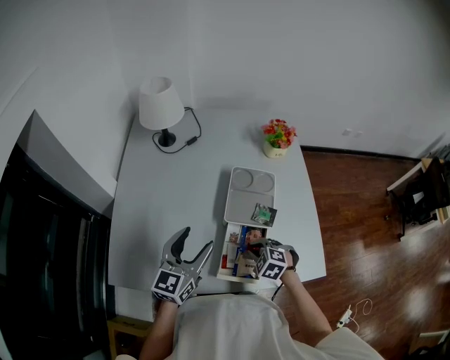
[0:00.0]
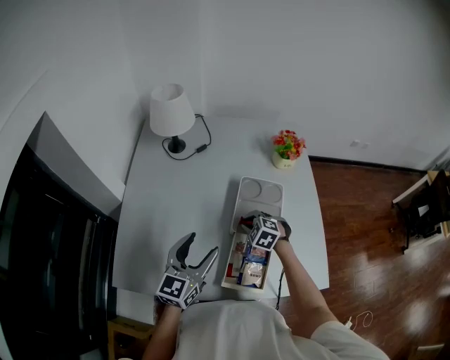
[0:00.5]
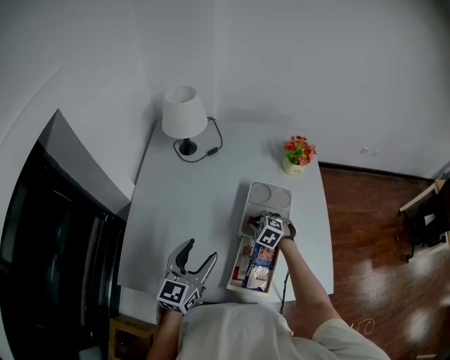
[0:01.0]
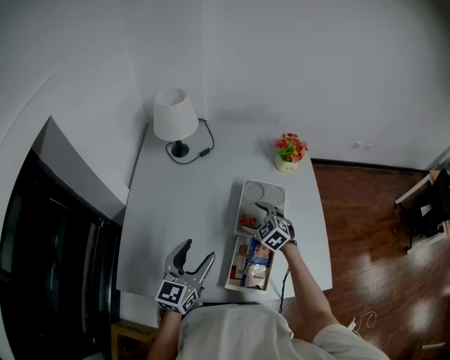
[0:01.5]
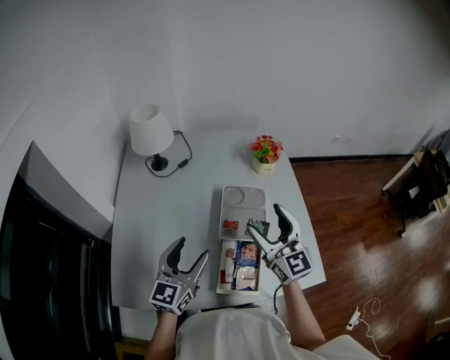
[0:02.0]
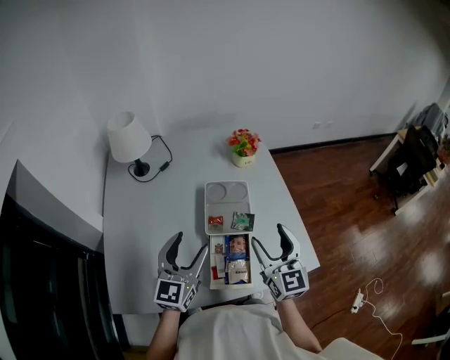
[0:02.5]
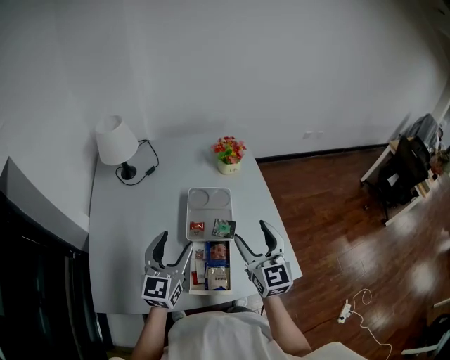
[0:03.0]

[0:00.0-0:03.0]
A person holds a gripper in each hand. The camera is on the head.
0:00.0 to 0:01.5: The right gripper goes approximately 15 cm forward, swivels approximately 20 degrees, and opens its fingers.
0:01.5 to 0:03.0: The right gripper moves upward, to the right and backward, approximately 30 cm, and tilts its fingers some 40 degrees upward. The left gripper goes about 10 cm to the right and upward.

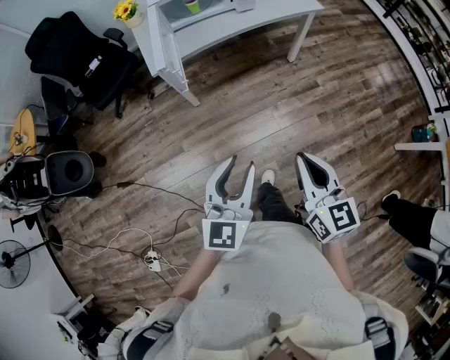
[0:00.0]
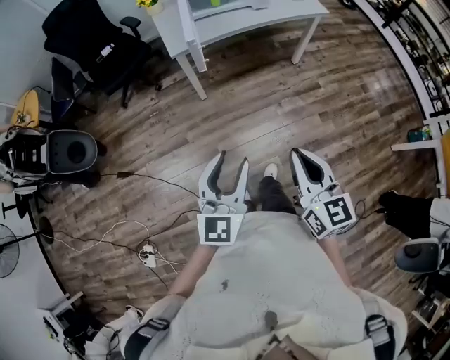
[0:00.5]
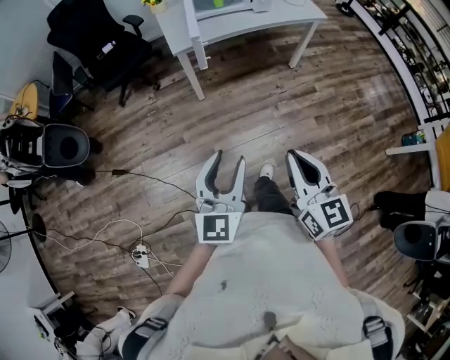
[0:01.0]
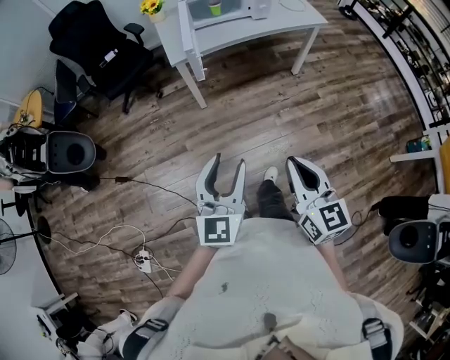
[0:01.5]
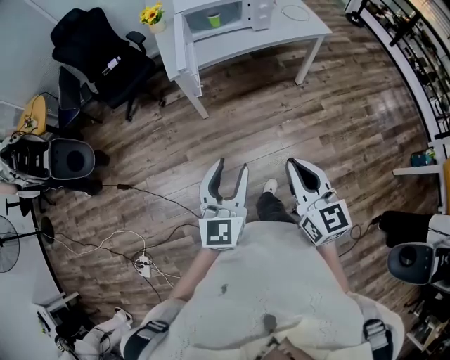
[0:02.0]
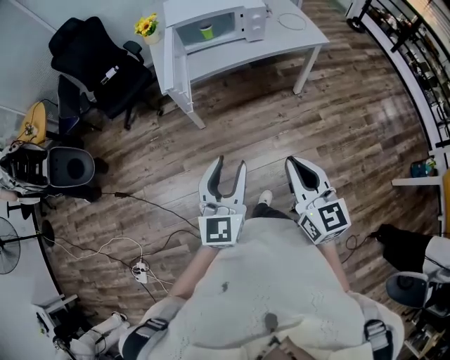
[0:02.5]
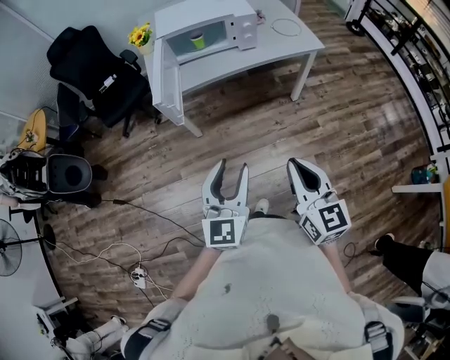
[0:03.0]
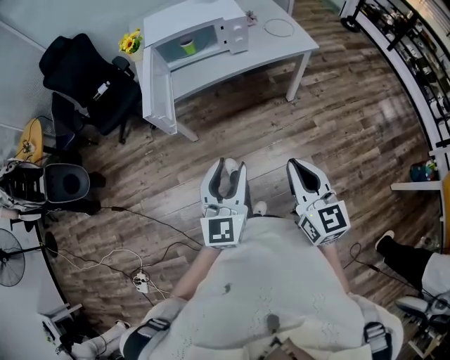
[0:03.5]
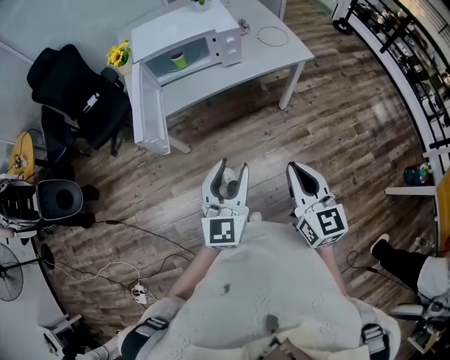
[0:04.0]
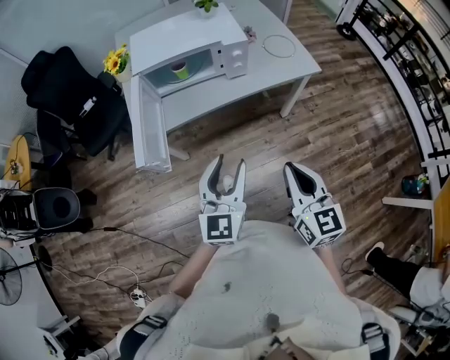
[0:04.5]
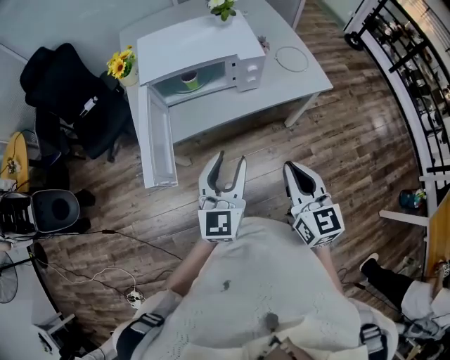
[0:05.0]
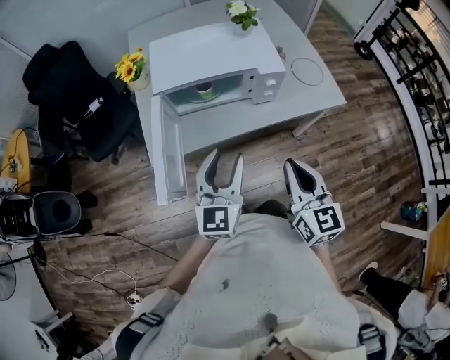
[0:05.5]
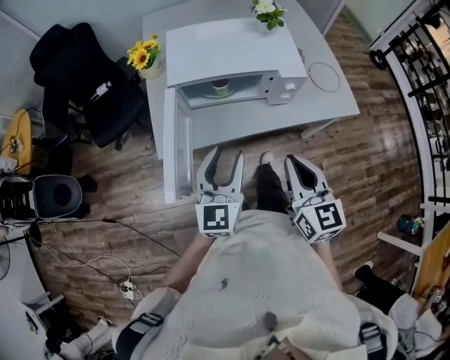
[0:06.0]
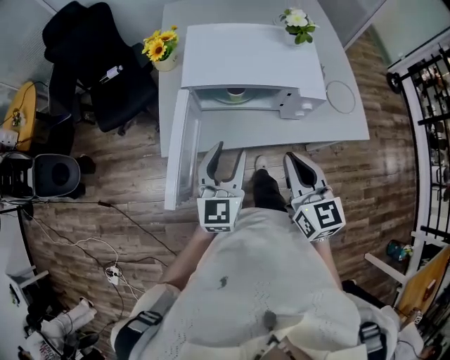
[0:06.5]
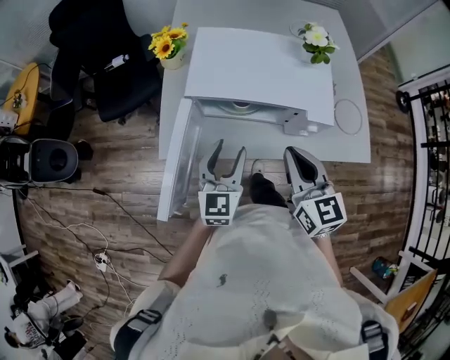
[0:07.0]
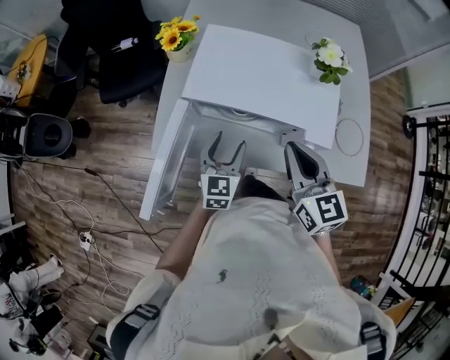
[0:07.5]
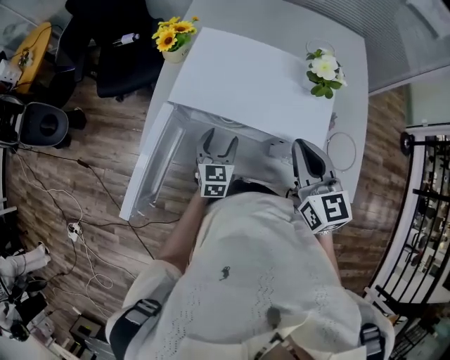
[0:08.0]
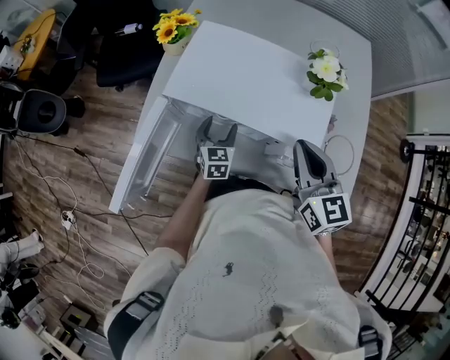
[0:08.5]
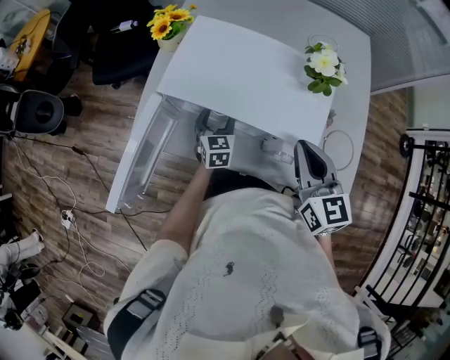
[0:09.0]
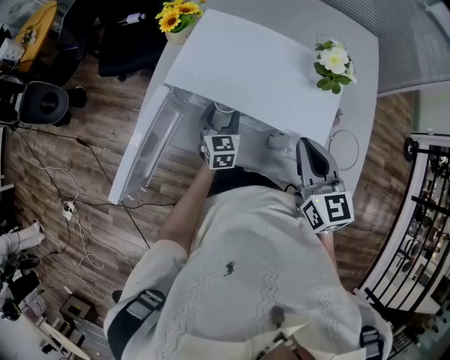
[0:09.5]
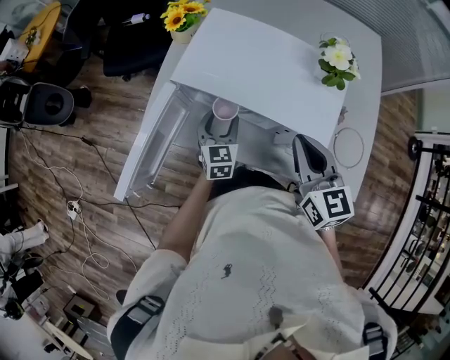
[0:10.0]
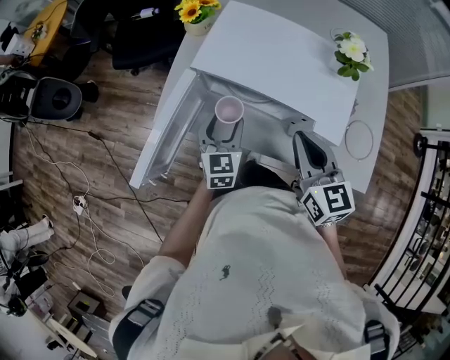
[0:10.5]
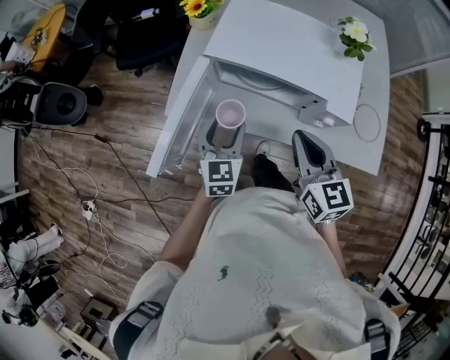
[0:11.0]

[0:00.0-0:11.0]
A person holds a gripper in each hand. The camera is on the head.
0:00.0 to 0:02.0: The right gripper travels backward and back again, roughly 15 cm each way. The left gripper reaches some 15 cm to the left, then returns.
0:02.0 to 0:03.5: Both grippers move to the right and forward, about 25 cm.
0:03.5 to 0:05.5: The pair of grippers is taken forward, roughly 40 cm.
0:05.5 to 0:07.5: The right gripper goes approximately 30 cm forward, and changes its angle by some 30 degrees. The left gripper moves forward and downward, about 30 cm, and turns by roughly 30 degrees.
0:07.5 to 0:09.0: The right gripper heads to the right, covering some 10 cm. The left gripper is displaced downward, forward and to the right by roughly 15 cm.
0:09.0 to 0:11.0: The left gripper goes some 25 cm backward, to the left and upward, while the right gripper heads to the left and backward, covering approximately 20 cm.

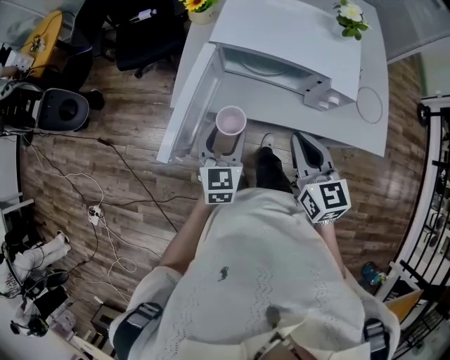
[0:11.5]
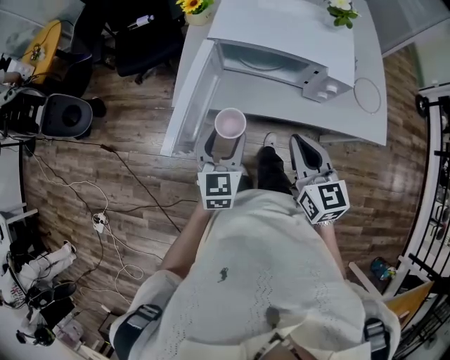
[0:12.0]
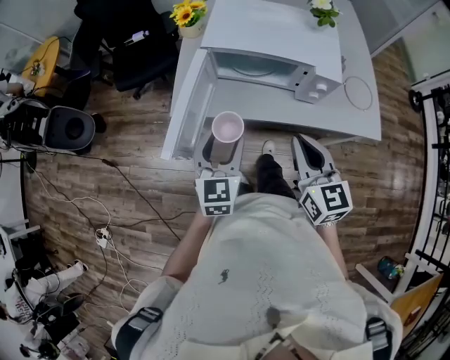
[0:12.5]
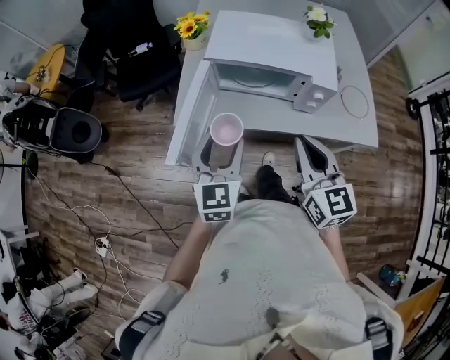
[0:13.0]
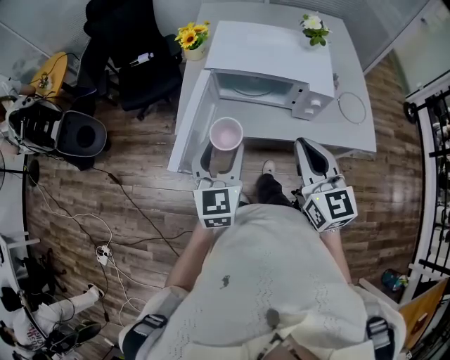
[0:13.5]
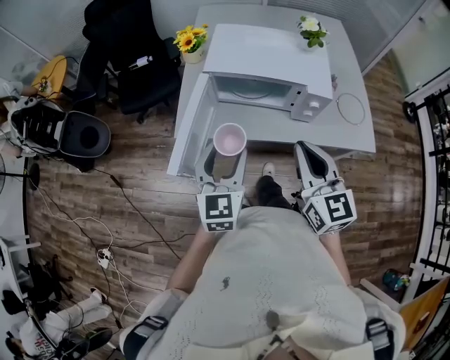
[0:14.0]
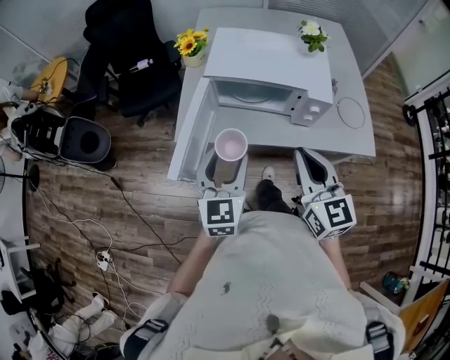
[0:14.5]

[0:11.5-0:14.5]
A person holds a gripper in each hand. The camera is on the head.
0:11.5 to 0:13.0: Both grippers move upward and backward, approximately 10 cm.
0:13.0 to 0:14.5: The grippers make only small movements.

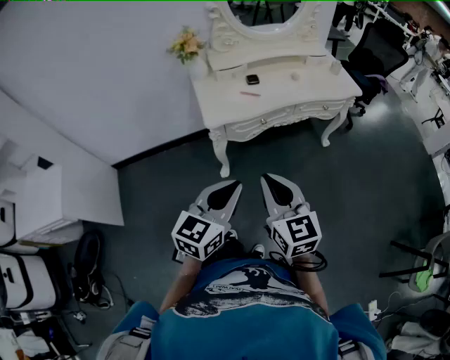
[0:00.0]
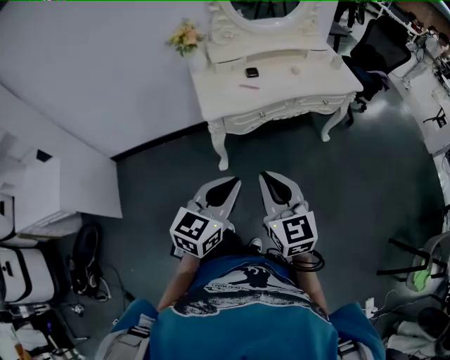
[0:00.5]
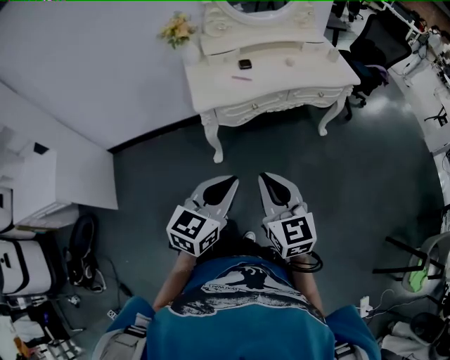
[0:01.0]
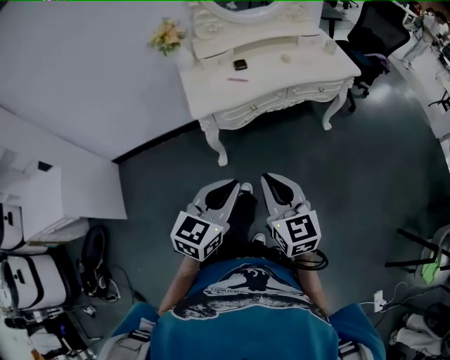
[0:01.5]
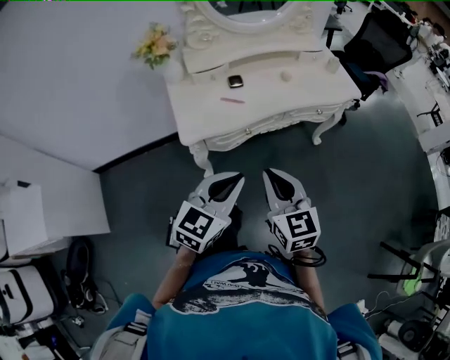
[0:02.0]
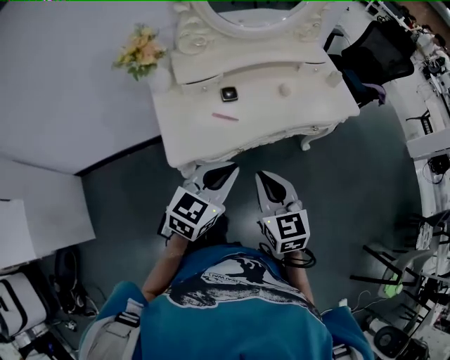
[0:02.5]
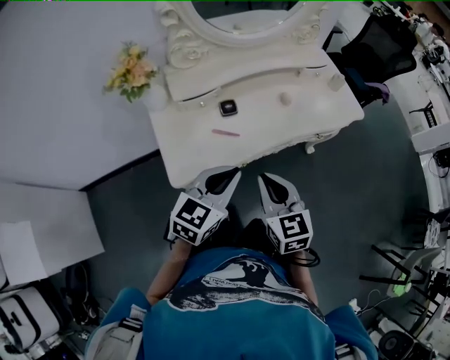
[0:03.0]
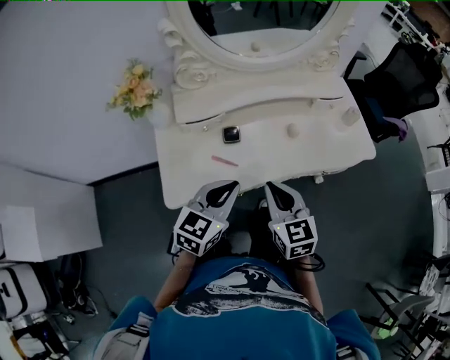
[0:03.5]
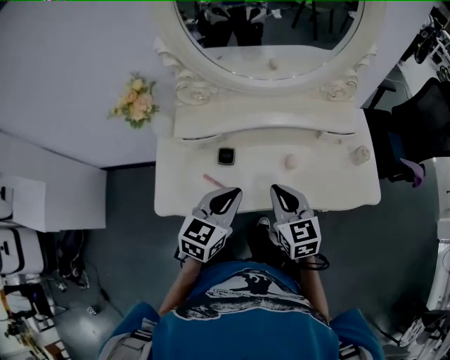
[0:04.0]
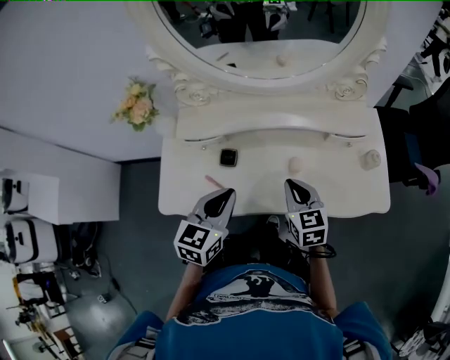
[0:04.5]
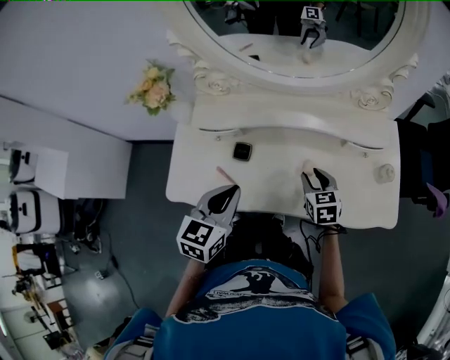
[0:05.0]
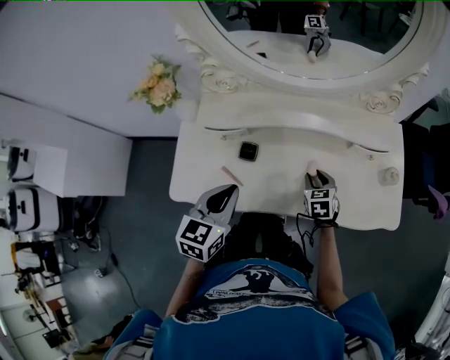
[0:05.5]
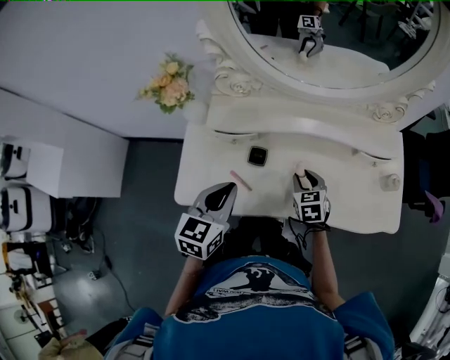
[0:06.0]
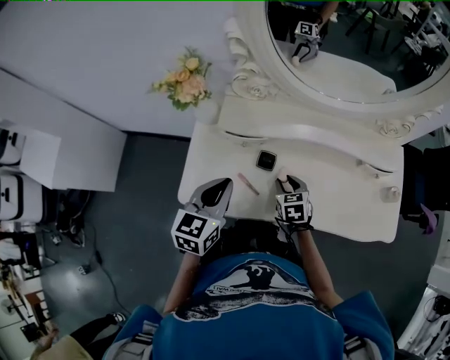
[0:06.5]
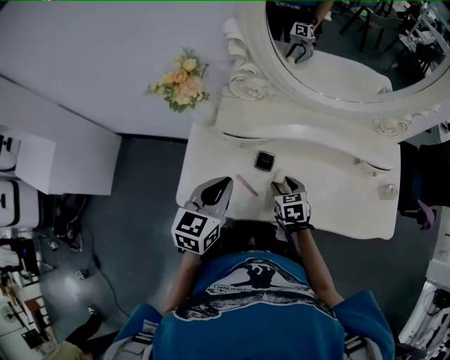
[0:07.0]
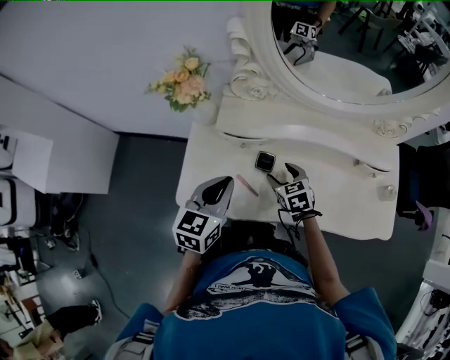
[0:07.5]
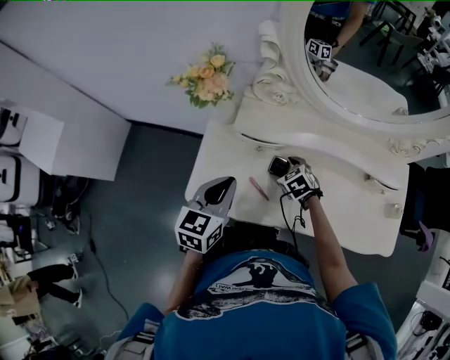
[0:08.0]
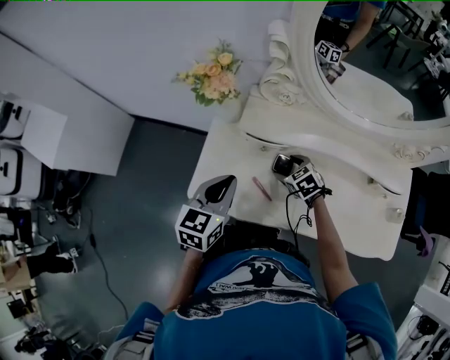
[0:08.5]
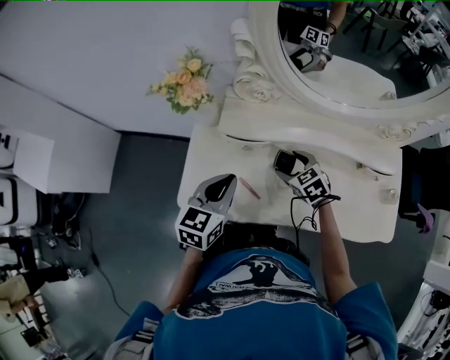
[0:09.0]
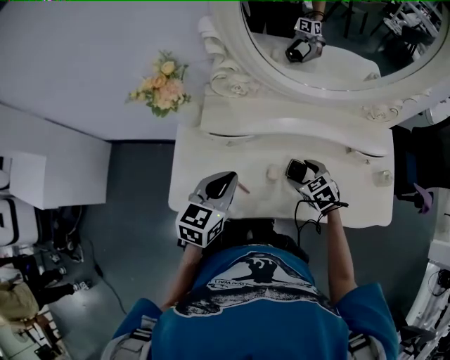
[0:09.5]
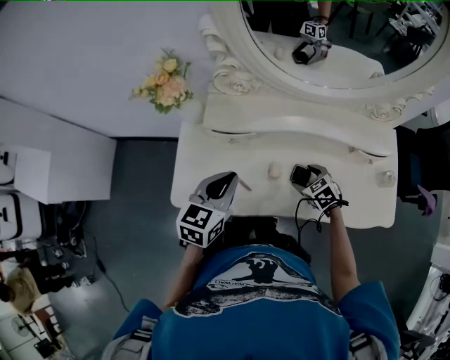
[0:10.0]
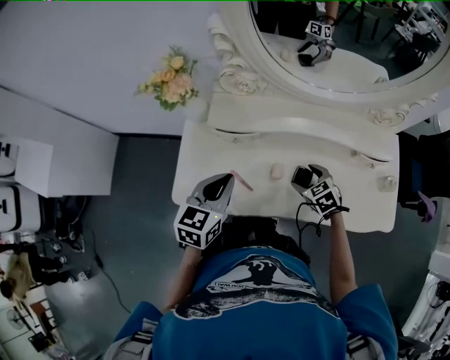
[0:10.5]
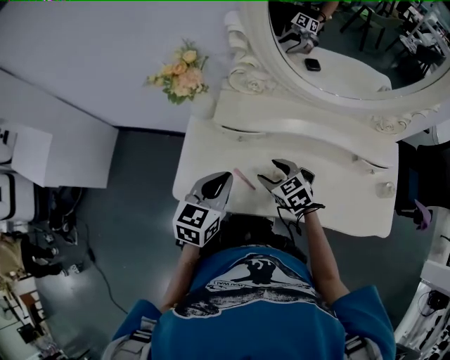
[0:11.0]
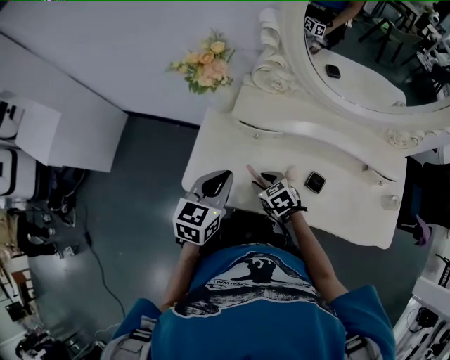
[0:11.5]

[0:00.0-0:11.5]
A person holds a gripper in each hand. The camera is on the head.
0:00.0 to 0:02.0: The grippers both shift forward by roughly 15 cm.
0:02.0 to 0:04.0: Both grippers move forward, some 35 cm. The left gripper rotates some 30 degrees.
0:04.0 to 0:06.0: The right gripper heads downward and forward, covering roughly 20 cm, changes its angle by some 20 degrees, and opens up, while the left gripper travels to the left by approximately 10 cm.
0:06.0 to 0:07.5: The left gripper travels to the left by some 5 cm; the right gripper travels to the left by approximately 10 cm, and opens its fingers.
0:07.5 to 0:09.5: The right gripper is displaced to the right by about 10 cm.
0:09.5 to 0:11.5: The right gripper heads to the left, covering approximately 20 cm, and closes its fingers. The left gripper travels to the left by approximately 10 cm.
